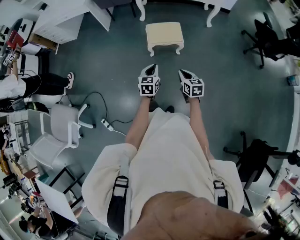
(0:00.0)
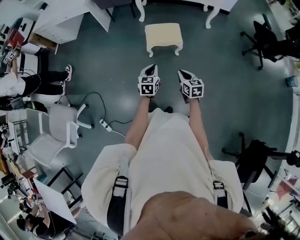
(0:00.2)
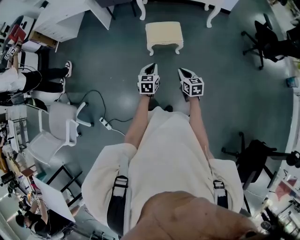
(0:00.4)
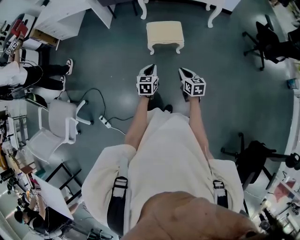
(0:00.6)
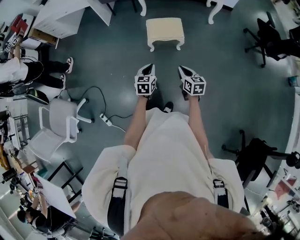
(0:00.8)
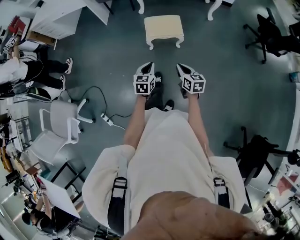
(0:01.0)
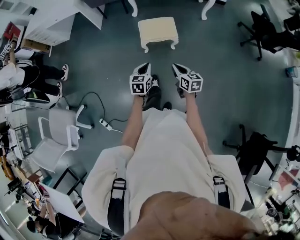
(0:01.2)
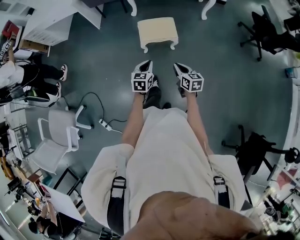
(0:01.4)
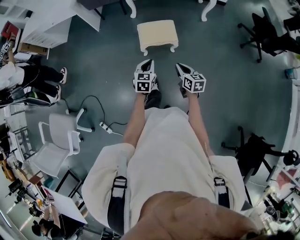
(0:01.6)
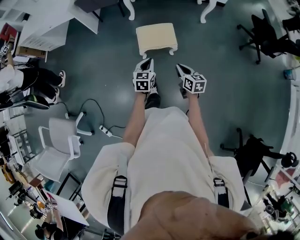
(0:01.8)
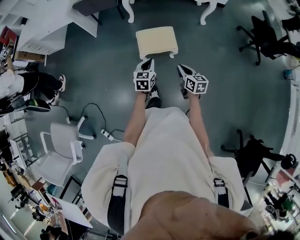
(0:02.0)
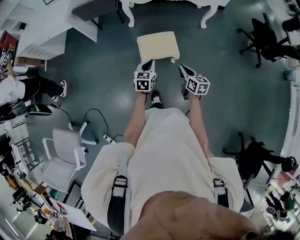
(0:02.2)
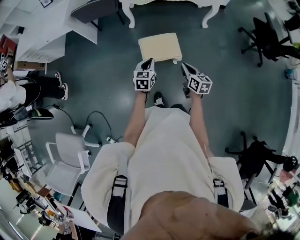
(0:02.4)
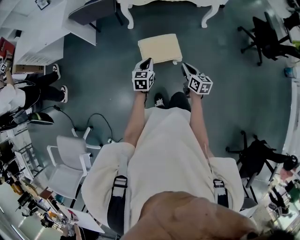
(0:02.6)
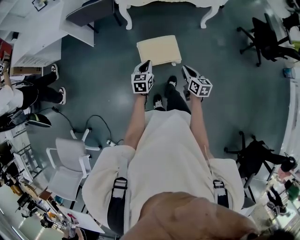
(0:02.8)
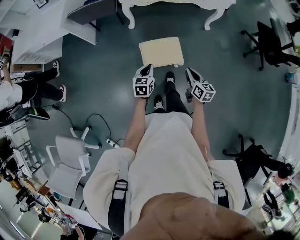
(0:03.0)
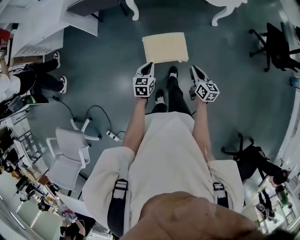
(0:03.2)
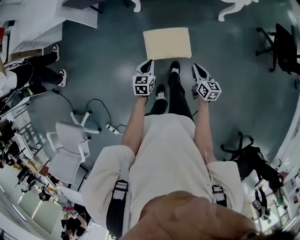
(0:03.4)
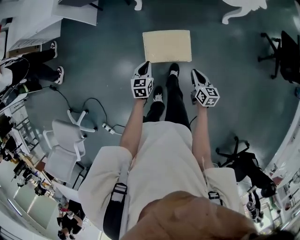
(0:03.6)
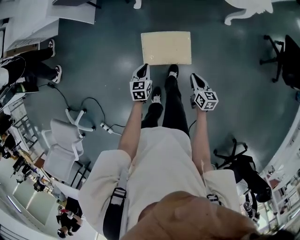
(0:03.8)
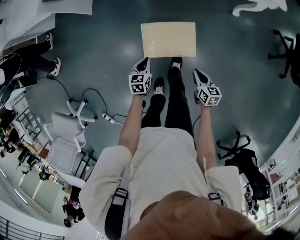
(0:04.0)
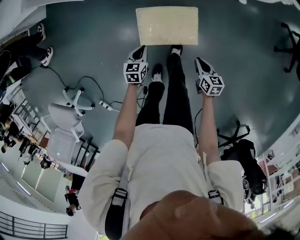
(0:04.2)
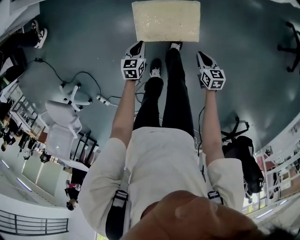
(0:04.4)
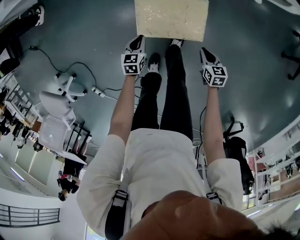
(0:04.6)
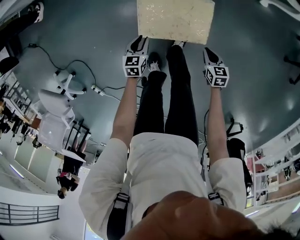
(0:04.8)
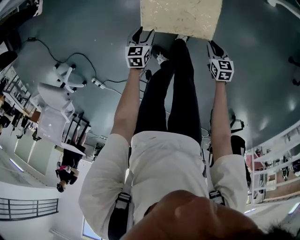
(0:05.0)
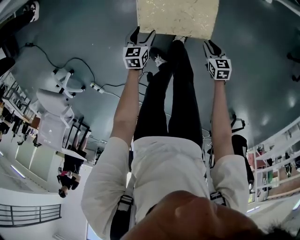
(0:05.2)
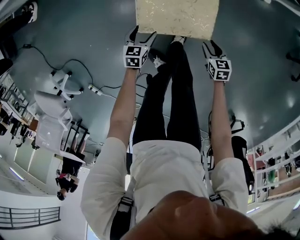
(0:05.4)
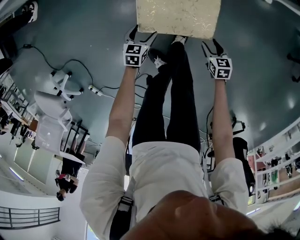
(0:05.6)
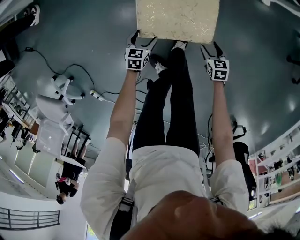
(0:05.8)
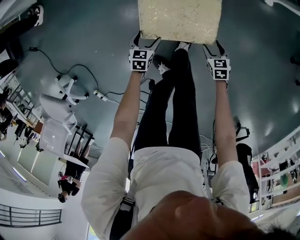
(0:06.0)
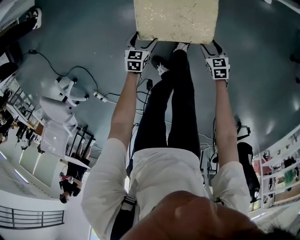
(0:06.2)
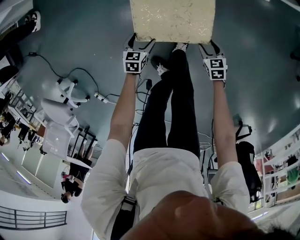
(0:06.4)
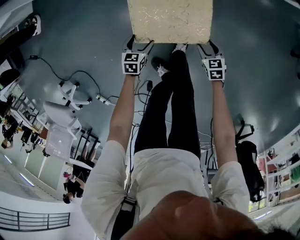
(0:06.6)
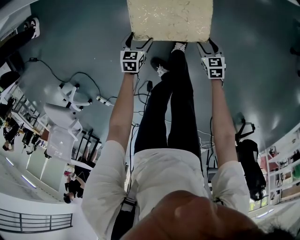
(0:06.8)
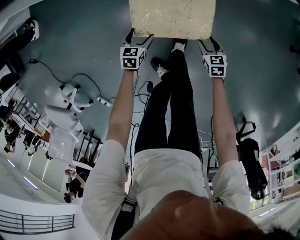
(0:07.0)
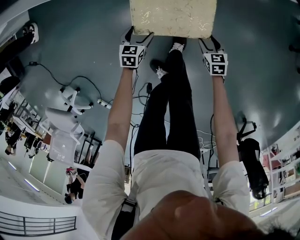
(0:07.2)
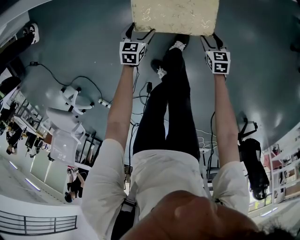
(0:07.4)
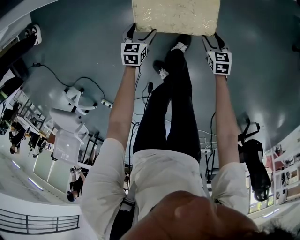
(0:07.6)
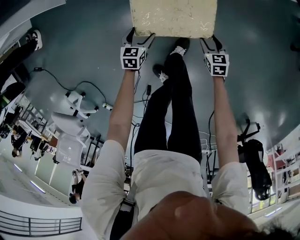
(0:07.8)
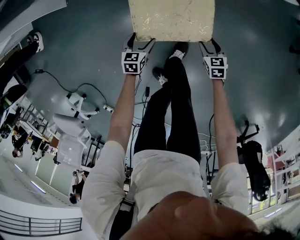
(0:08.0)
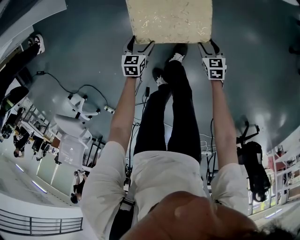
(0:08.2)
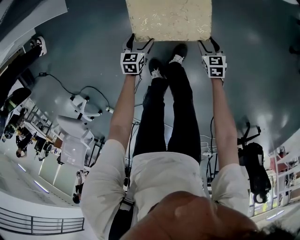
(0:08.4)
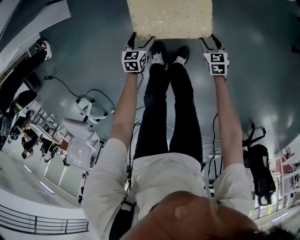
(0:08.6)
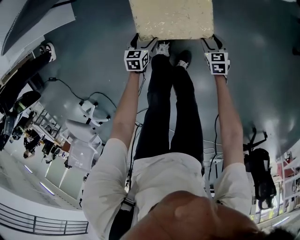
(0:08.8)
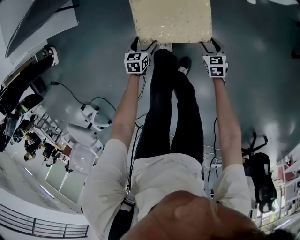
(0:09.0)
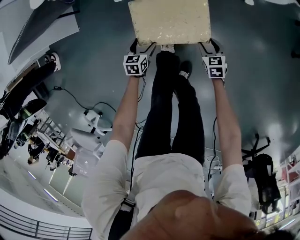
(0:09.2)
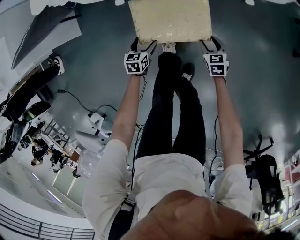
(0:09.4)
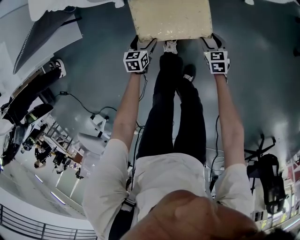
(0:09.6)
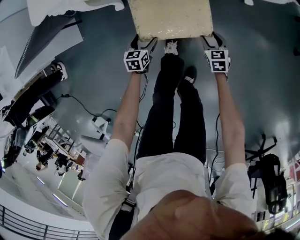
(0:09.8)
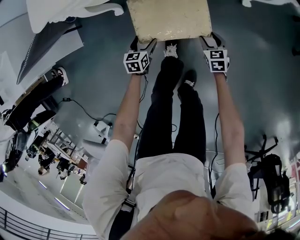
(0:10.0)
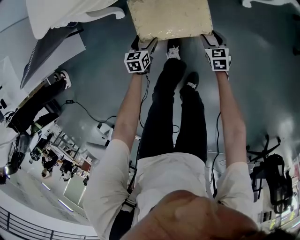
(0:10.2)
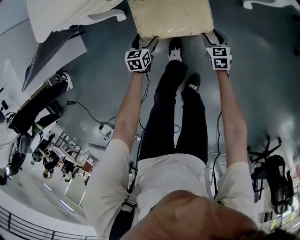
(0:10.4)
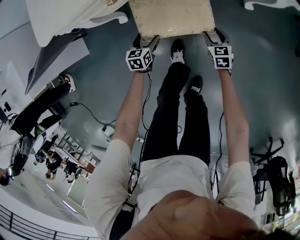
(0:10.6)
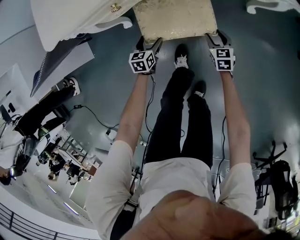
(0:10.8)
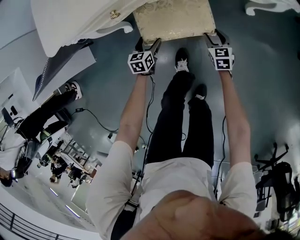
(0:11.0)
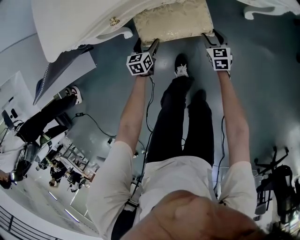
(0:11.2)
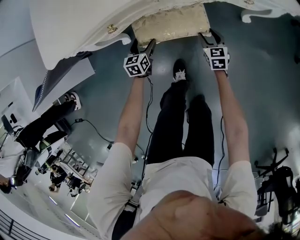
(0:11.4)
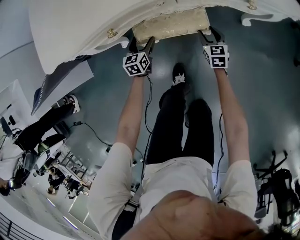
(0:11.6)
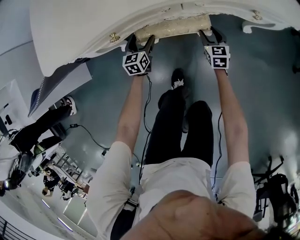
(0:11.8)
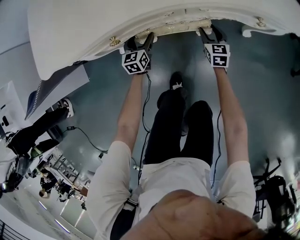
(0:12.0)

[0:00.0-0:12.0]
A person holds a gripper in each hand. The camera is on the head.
0:00.0 to 0:01.6: The grippers both shift forward by approximately 10 cm.
0:01.6 to 0:03.0: Both grippers move forward, about 25 cm.
0:03.0 to 0:04.4: Both grippers move downward, about 35 cm. The right gripper turns by approximately 30 degrees.
0:04.4 to 0:06.0: Both grippers travel together downward, about 15 cm. The right gripper changes its angle by roughly 20 degrees, and opens up, while the left gripper opens its fingers.
0:06.0 to 0:07.6: The left gripper travels forward by some 10 cm, while the right gripper moves forward, approximately 5 cm.
0:07.6 to 0:09.0: The grippers both shift forward by roughly 15 cm.
0:09.0 to 0:10.4: Both grippers travel together forward, some 20 cm.
0:10.4 to 0:12.0: Both grippers travel together forward, roughly 25 cm. The left gripper rotates approximately 20 degrees.

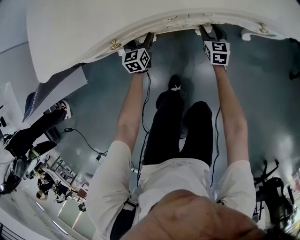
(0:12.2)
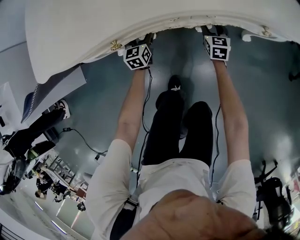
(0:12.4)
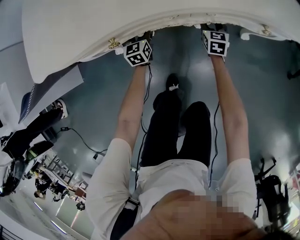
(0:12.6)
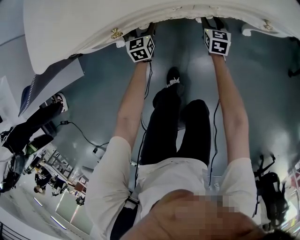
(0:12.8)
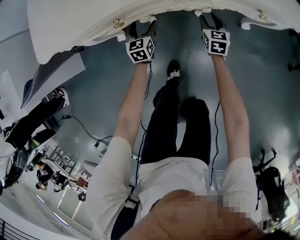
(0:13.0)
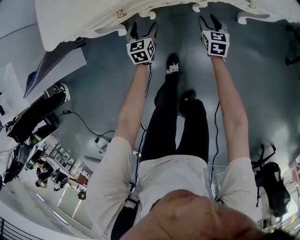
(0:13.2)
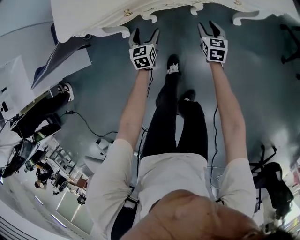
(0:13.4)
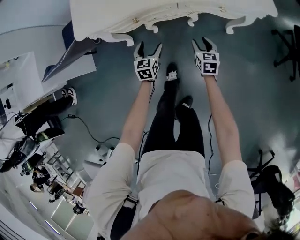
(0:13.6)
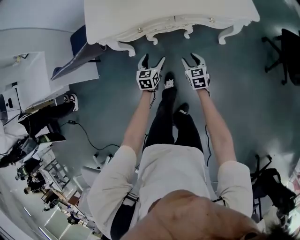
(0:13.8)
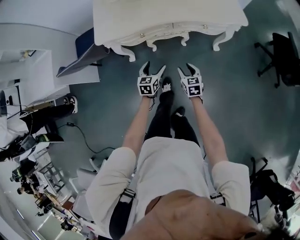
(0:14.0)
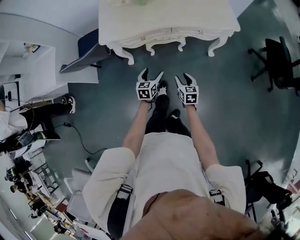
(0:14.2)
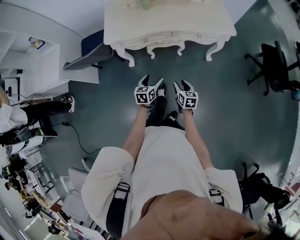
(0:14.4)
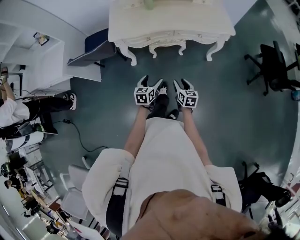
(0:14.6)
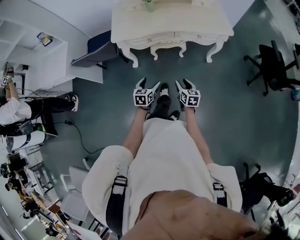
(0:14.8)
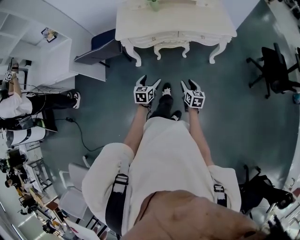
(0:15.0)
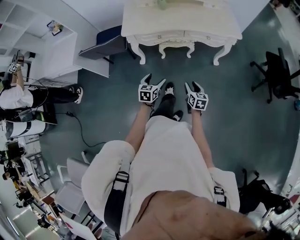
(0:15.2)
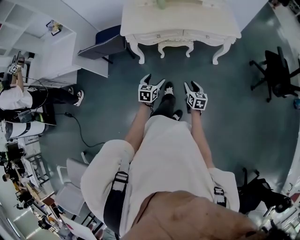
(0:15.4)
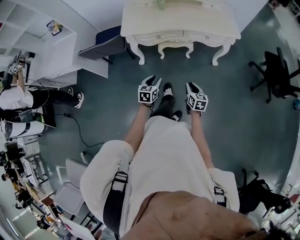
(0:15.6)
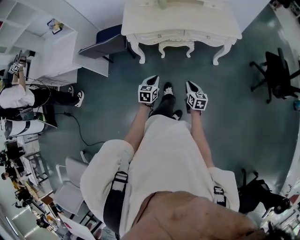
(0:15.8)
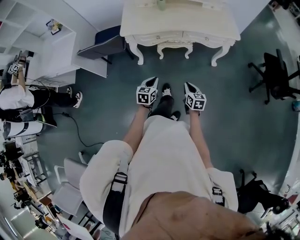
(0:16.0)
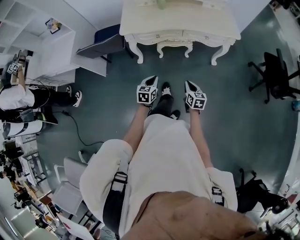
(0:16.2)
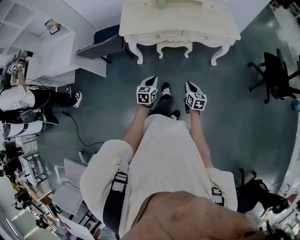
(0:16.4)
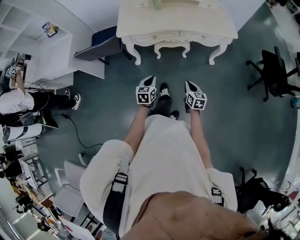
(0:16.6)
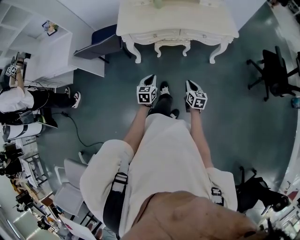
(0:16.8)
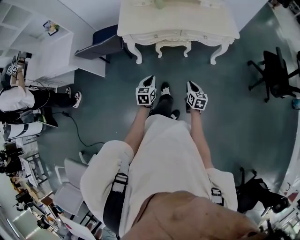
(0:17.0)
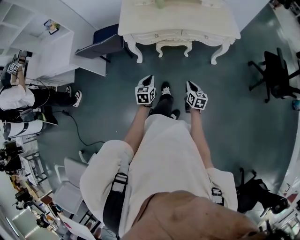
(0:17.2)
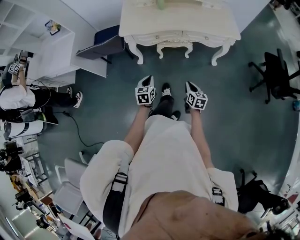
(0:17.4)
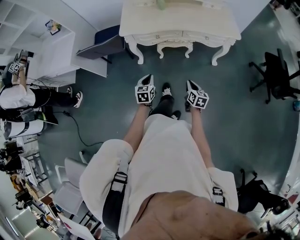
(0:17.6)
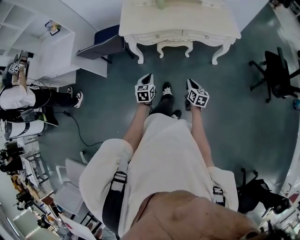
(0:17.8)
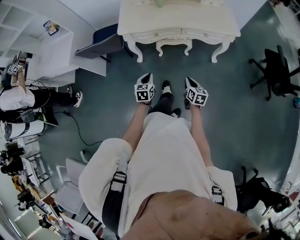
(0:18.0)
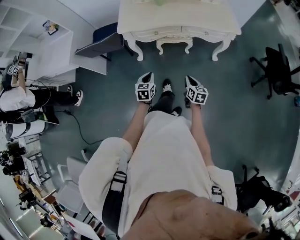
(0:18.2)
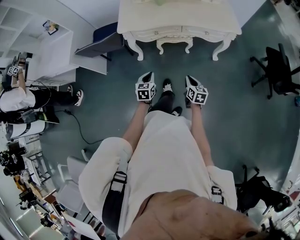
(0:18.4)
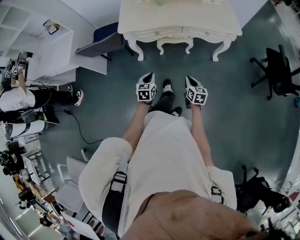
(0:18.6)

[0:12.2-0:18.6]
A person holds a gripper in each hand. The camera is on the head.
0:12.2 to 0:13.8: The grippers both shift upward and backward by approximately 40 cm.
0:13.8 to 0:15.4: The grippers both shift backward and upward by some 30 cm.
0:15.4 to 0:17.0: The left gripper closes its fingers; the right gripper closes.
0:17.0 to 0:18.6: There are only small adjustments of the grippers.

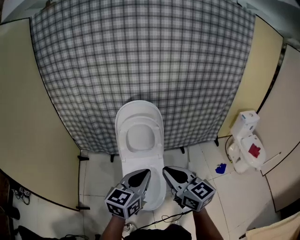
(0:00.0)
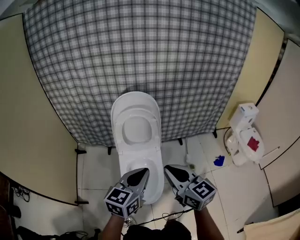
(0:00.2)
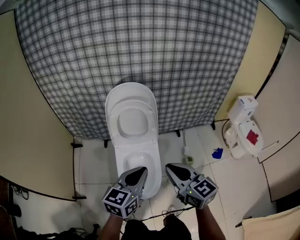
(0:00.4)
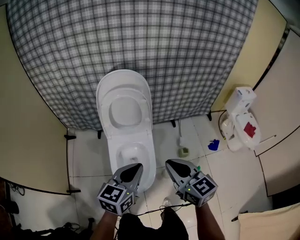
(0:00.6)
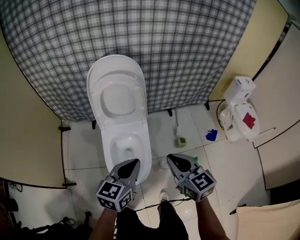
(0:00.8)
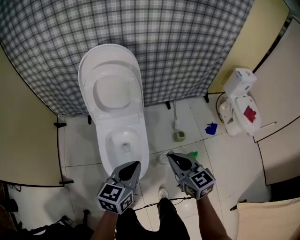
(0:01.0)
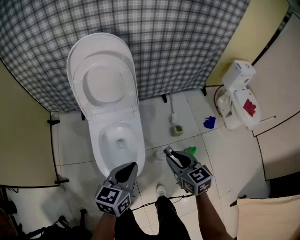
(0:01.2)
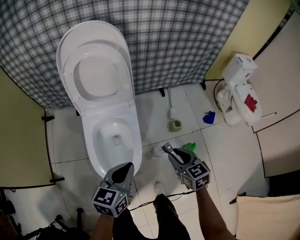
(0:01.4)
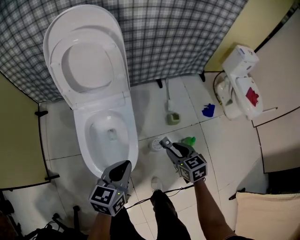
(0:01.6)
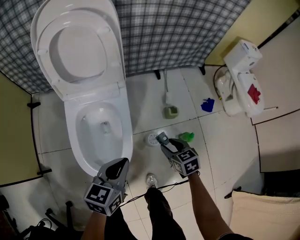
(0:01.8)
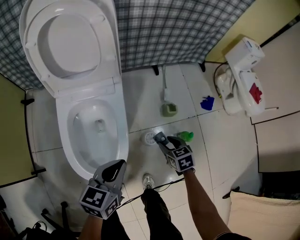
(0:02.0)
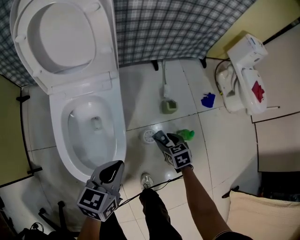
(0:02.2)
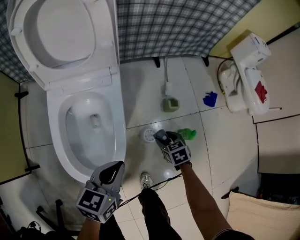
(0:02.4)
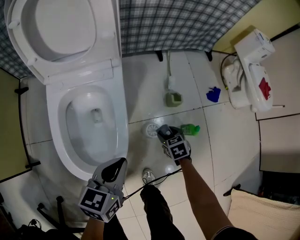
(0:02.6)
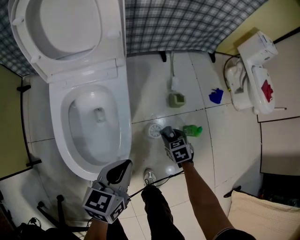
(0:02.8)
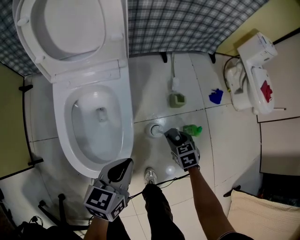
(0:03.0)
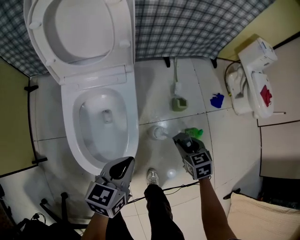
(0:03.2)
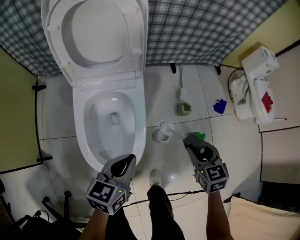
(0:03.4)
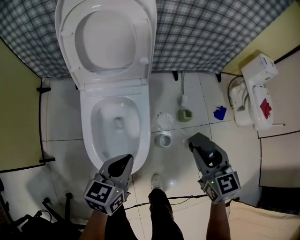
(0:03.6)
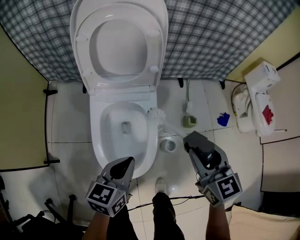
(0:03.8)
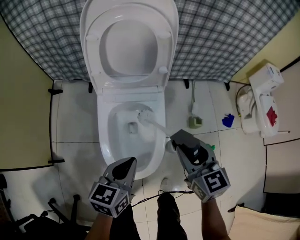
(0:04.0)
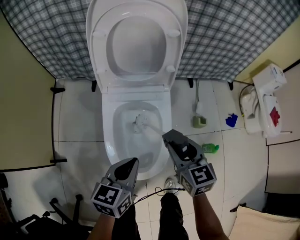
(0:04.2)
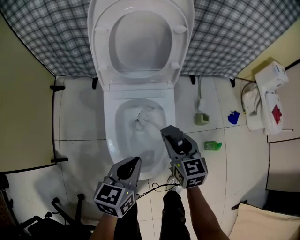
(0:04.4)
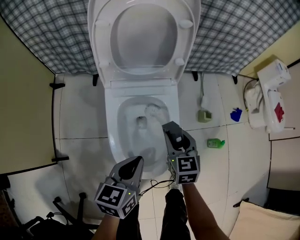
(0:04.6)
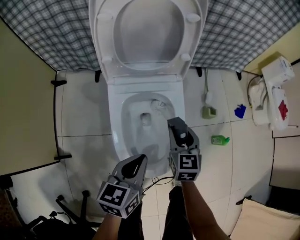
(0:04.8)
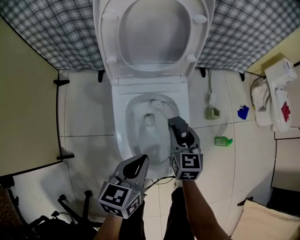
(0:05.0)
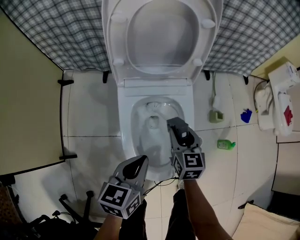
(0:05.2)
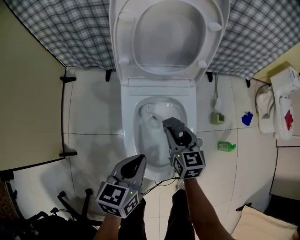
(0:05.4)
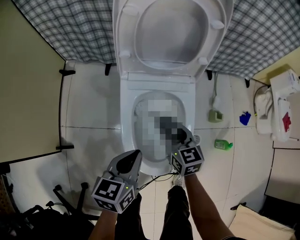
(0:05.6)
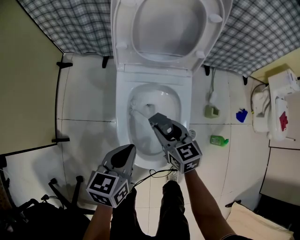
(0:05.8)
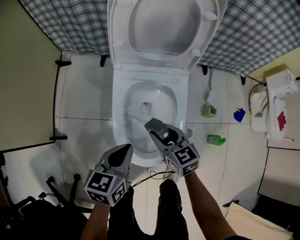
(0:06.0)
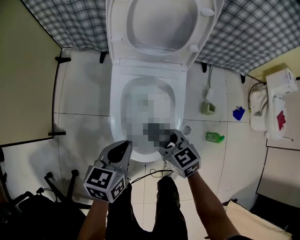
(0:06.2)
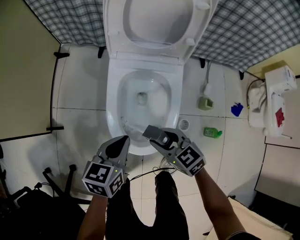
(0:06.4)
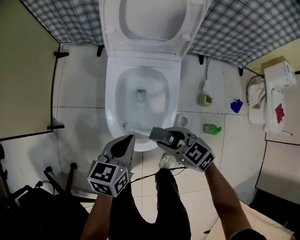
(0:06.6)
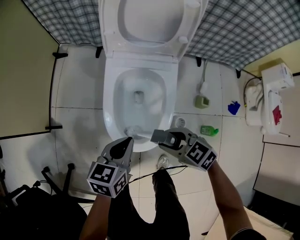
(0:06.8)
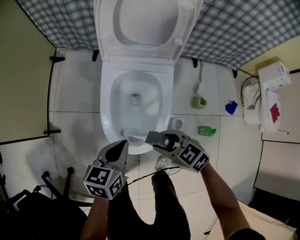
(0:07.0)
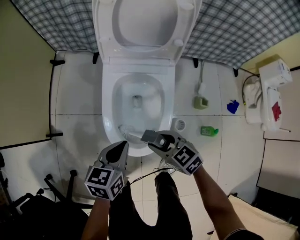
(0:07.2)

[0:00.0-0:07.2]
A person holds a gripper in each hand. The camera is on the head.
0:00.0 to 0:01.4: The left gripper moves downward, approximately 30 cm; the right gripper travels downward and to the right by some 40 cm, and angles its fingers downward, by some 30 degrees.
0:01.4 to 0:02.8: The right gripper shifts some 35 cm downward, and turns by about 30 degrees, while the left gripper is displaced downward by about 20 cm.
0:02.8 to 0:04.4: The right gripper travels upward and to the left by about 35 cm, and tilts its fingers about 30 degrees upward; the left gripper moves to the left and upward, some 20 cm.
0:04.4 to 0:05.8: The left gripper moves to the left, about 5 cm; the right gripper moves to the left and downward, some 10 cm.
0:05.8 to 0:07.2: The left gripper is displaced backward by some 5 cm. The right gripper shifts approximately 10 cm backward, and rotates about 30 degrees.
